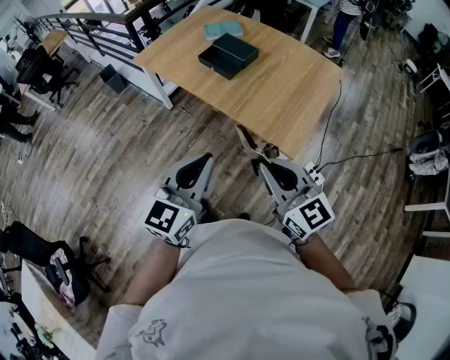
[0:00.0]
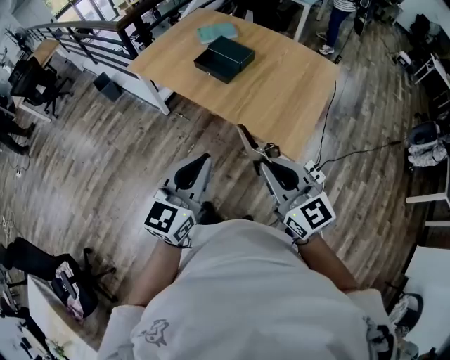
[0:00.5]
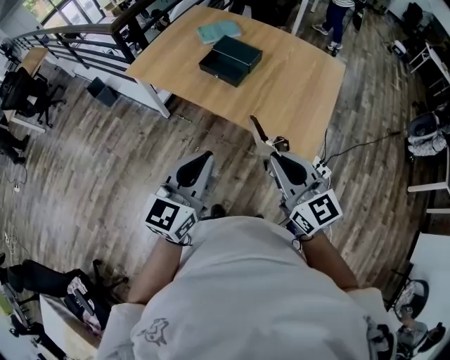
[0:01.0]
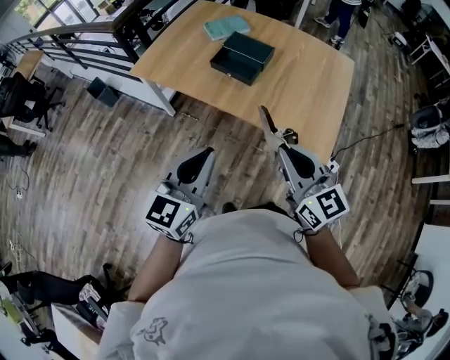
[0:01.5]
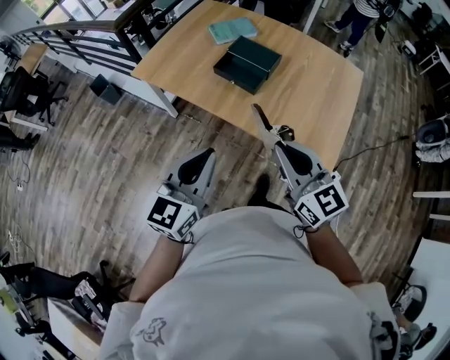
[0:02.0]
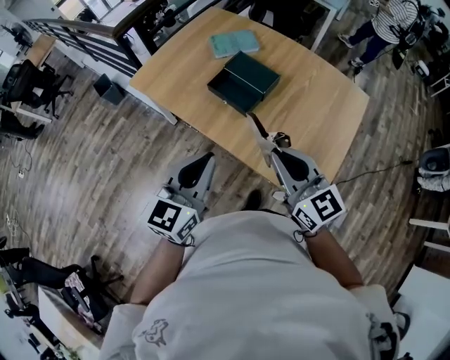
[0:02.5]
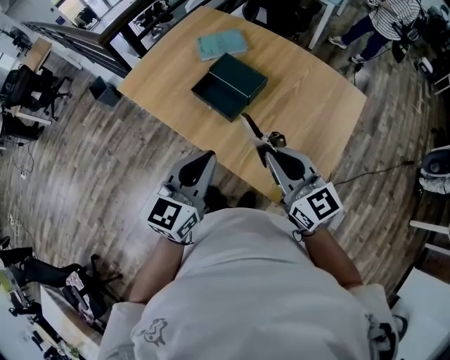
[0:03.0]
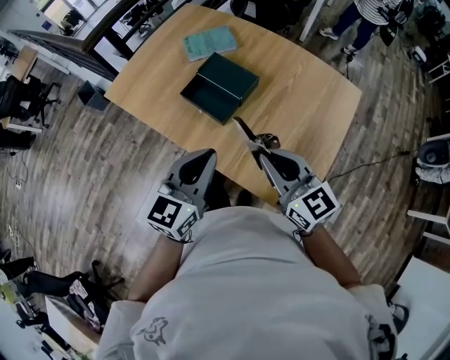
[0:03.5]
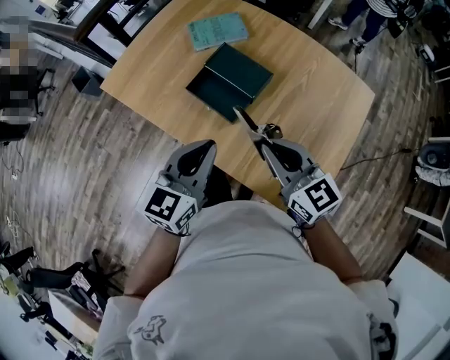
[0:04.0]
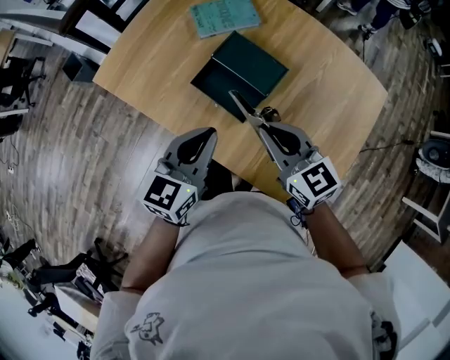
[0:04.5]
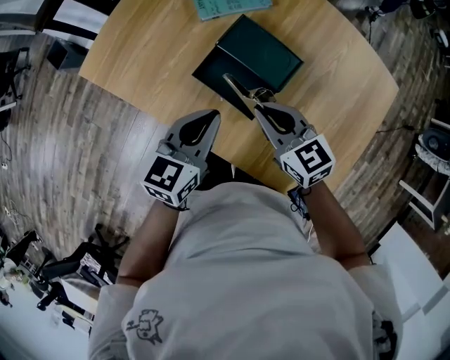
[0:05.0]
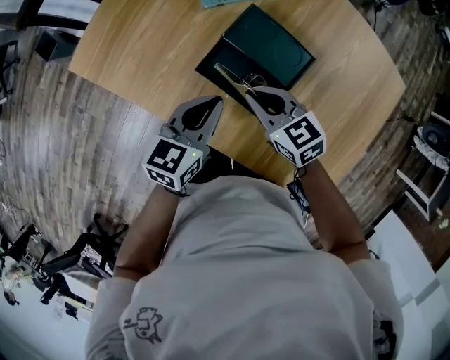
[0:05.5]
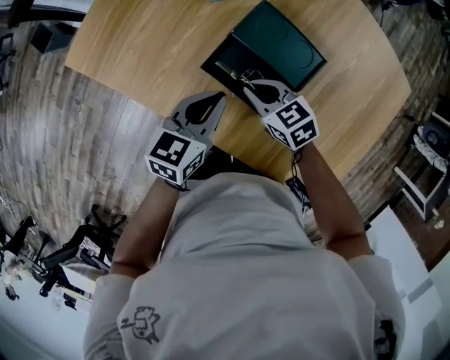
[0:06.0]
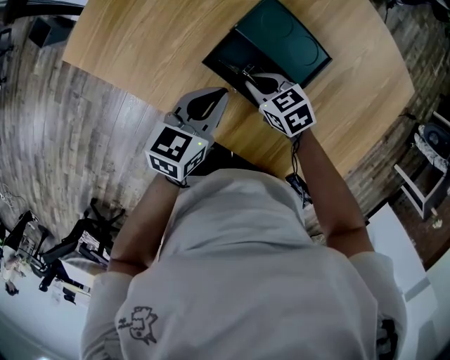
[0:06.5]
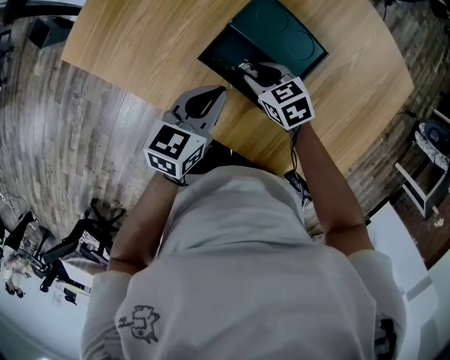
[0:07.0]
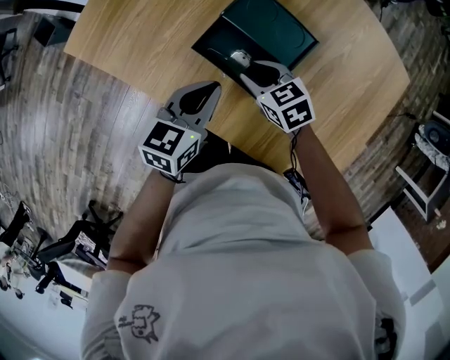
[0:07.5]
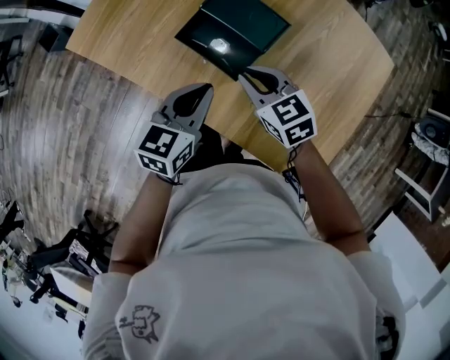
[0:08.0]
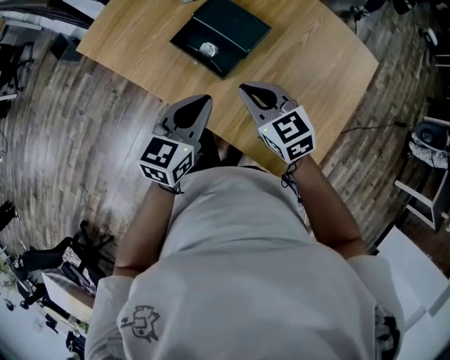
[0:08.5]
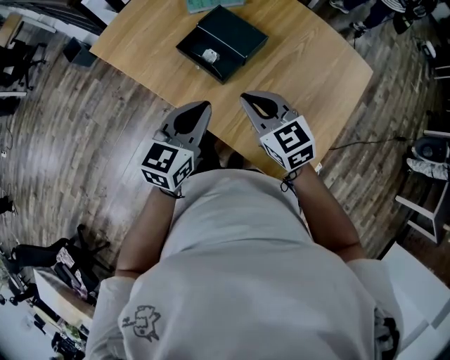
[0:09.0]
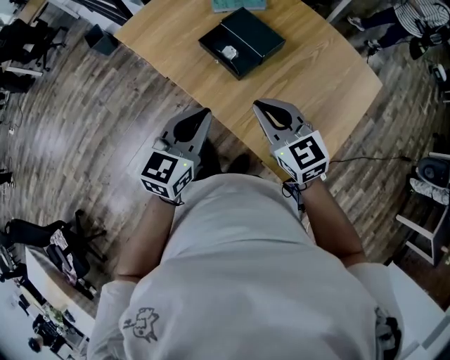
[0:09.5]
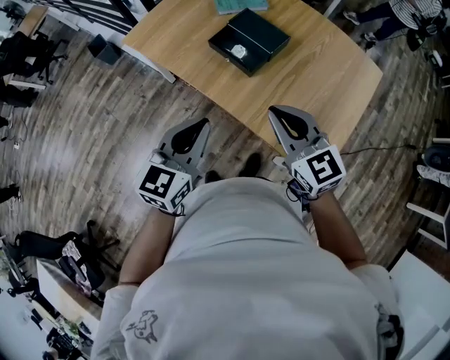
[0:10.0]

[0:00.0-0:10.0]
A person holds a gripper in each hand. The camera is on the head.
0:00.0 to 0:02.0: Both grippers travel together forward and to the left, about 25 cm.
0:02.0 to 0:04.0: Both grippers move forward and to the right, some 25 cm.
0:04.0 to 0:06.0: The right gripper shifts about 35 cm downward, forward and to the left, and tilts its fingers some 30 degrees downward; the left gripper travels downward and forward by approximately 25 cm, and changes its angle by some 20 degrees.
0:06.0 to 0:08.0: The right gripper is displaced upward, backward and to the right by about 15 cm, and opens, then closes once more, while the left gripper is displaced backward and upward by approximately 10 cm.
0:08.0 to 0:10.0: Both grippers move backward and upward, roughly 25 cm. The right gripper changes its angle by some 30 degrees.

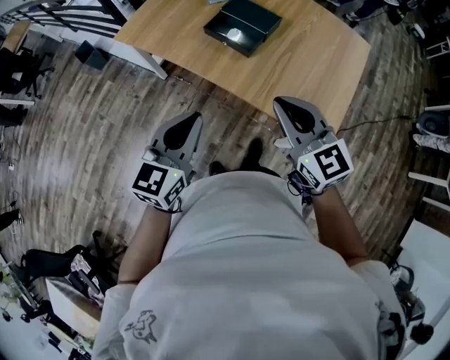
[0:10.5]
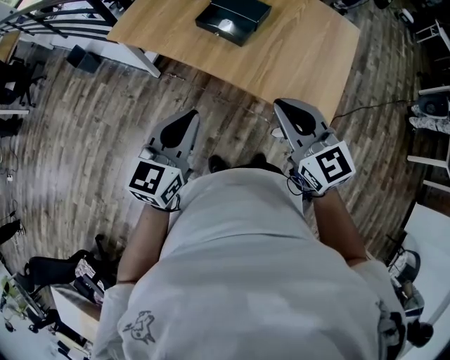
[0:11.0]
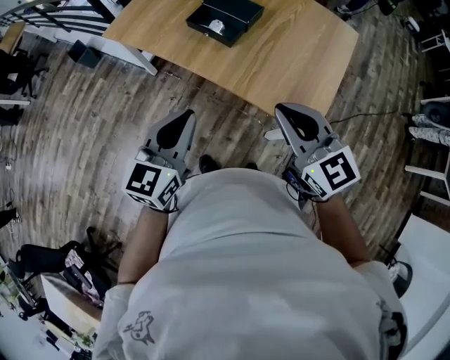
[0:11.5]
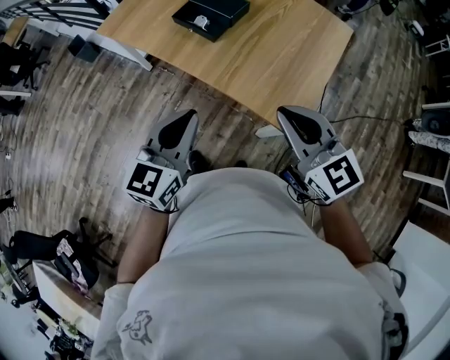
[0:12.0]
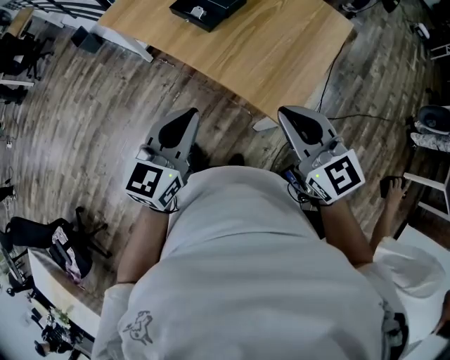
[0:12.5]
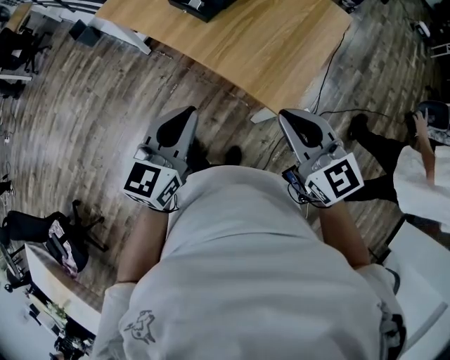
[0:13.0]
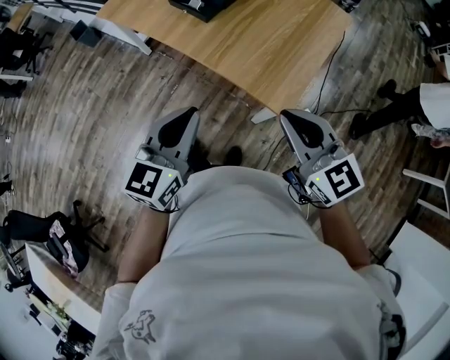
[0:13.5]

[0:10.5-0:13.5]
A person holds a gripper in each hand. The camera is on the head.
0:10.5 to 0:12.0: The two grippers go about 15 cm to the right and backward.
0:12.0 to 0:13.5: The grippers both shift backward by some 10 cm.

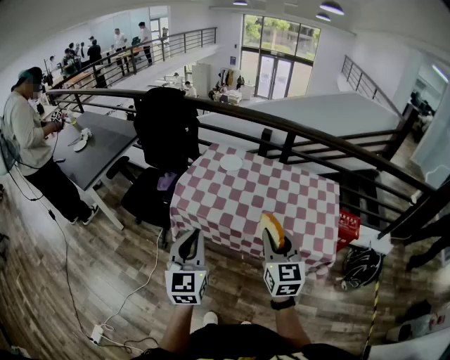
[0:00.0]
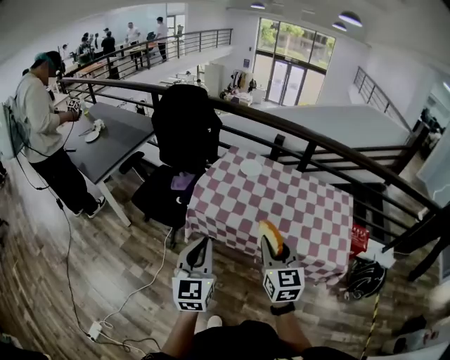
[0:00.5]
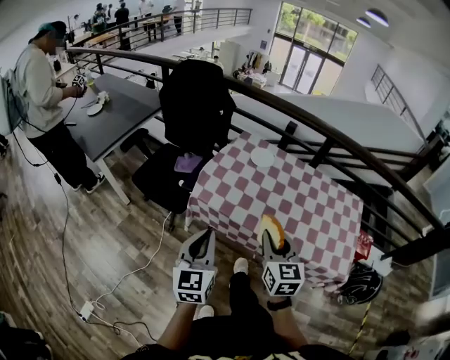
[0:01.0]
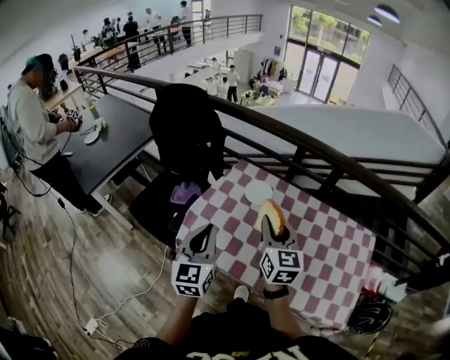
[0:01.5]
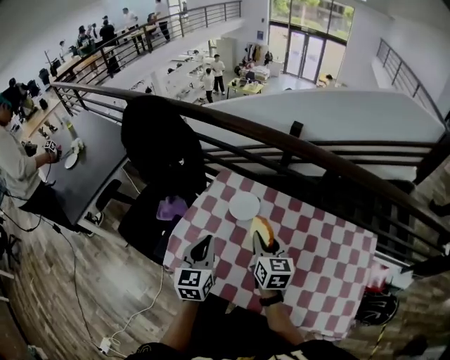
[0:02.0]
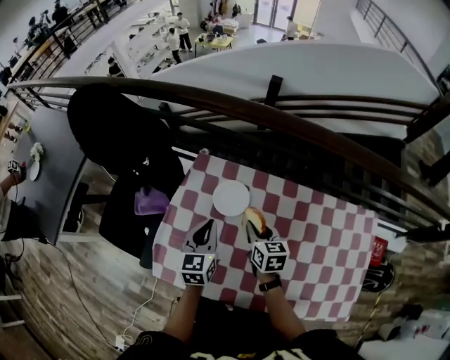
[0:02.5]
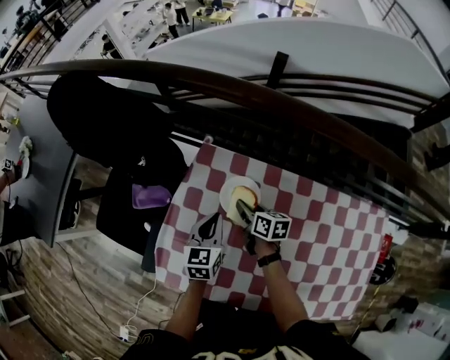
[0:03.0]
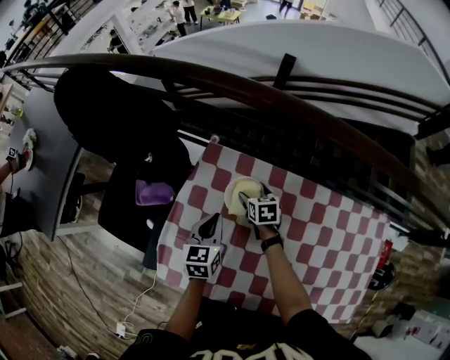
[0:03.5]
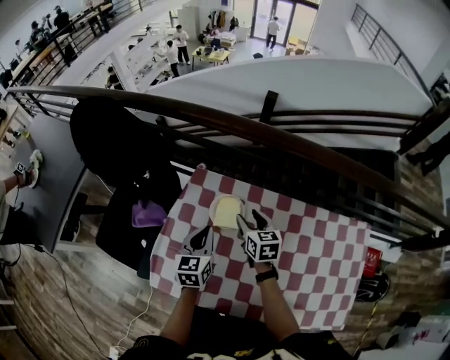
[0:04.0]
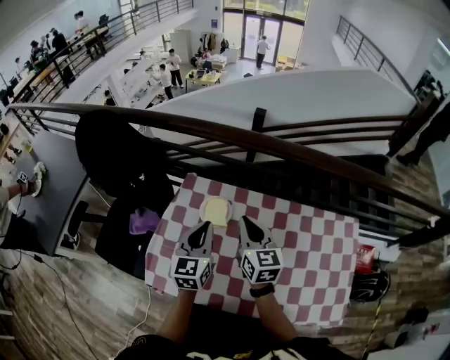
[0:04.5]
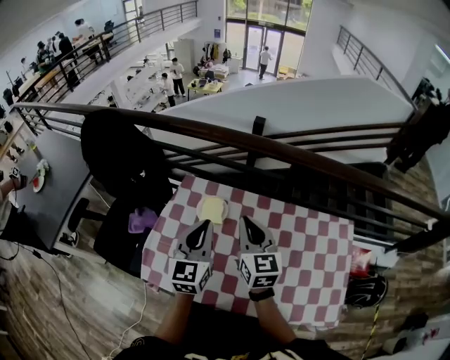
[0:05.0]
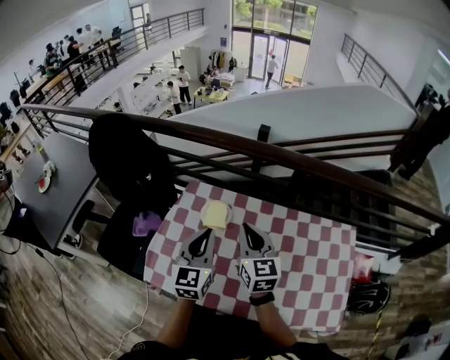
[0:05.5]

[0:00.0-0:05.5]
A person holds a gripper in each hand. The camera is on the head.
0:00.0 to 0:02.0: Both grippers move forward, approximately 40 cm. The right gripper swivels about 20 degrees.
0:02.0 to 0:03.5: Both grippers move downward and forward, approximately 30 cm. The left gripper rotates approximately 20 degrees, while the right gripper points its fingers some 30 degrees further downward, and opens its fingers.
0:03.5 to 0:05.5: The left gripper travels upward, backward and to the right by some 25 cm, and rotates some 30 degrees. Meanwhile the right gripper moves upward and backward, about 40 cm, angles its fingers upward, by roughly 40 degrees, and closes.

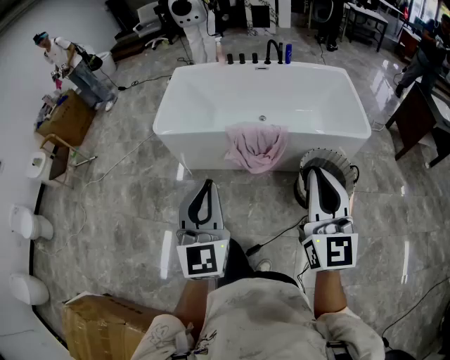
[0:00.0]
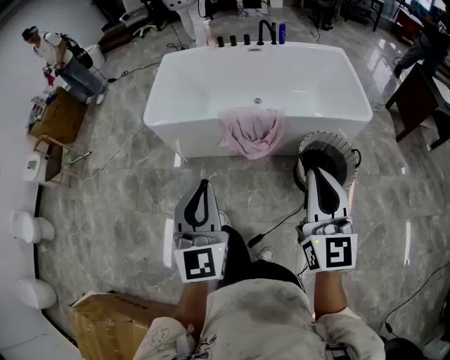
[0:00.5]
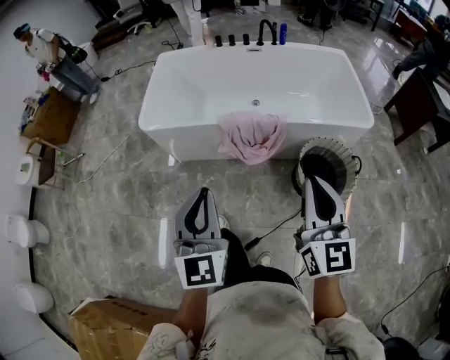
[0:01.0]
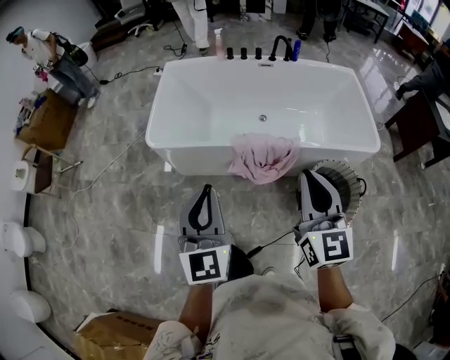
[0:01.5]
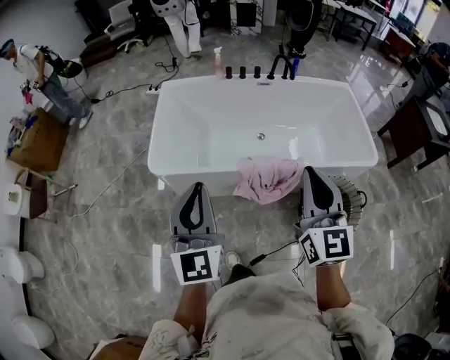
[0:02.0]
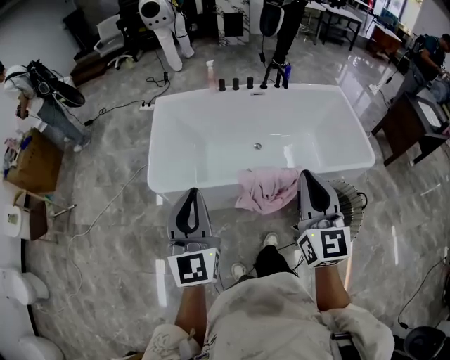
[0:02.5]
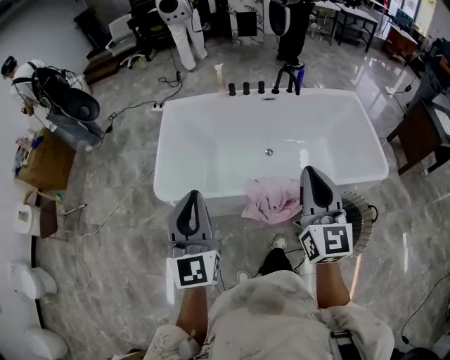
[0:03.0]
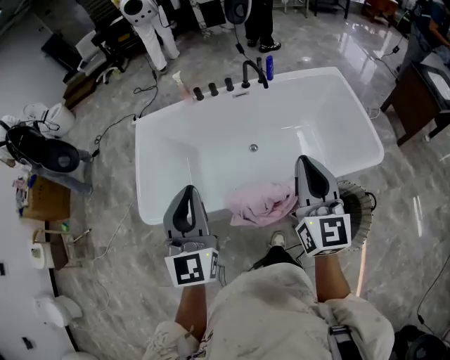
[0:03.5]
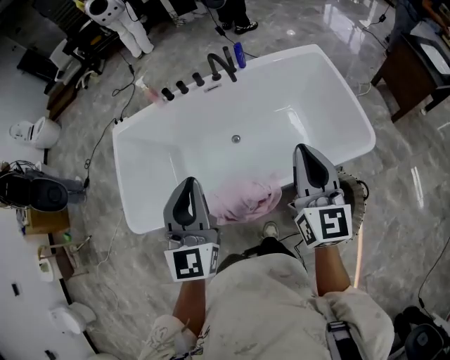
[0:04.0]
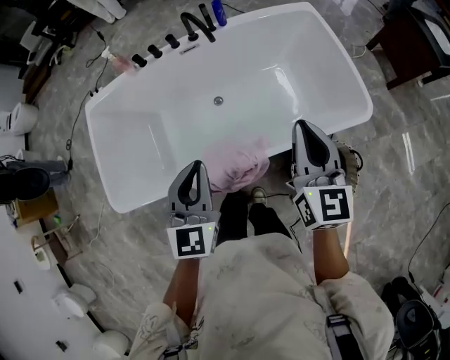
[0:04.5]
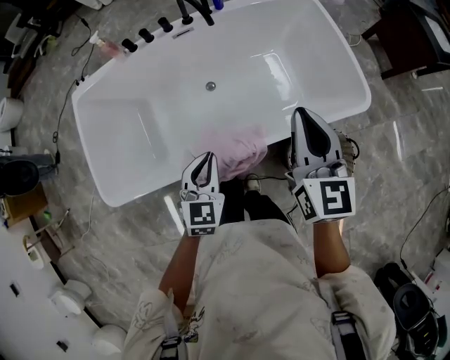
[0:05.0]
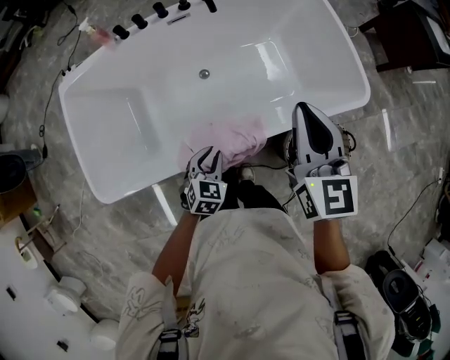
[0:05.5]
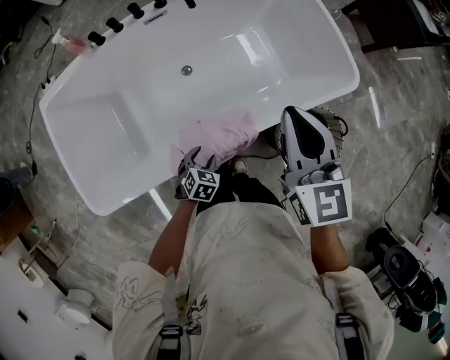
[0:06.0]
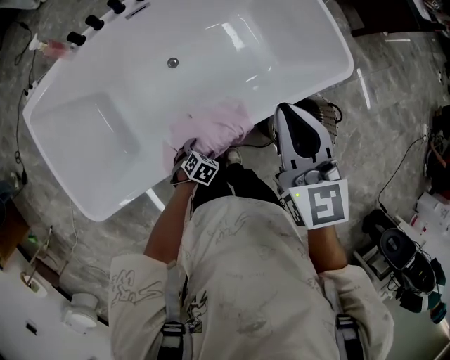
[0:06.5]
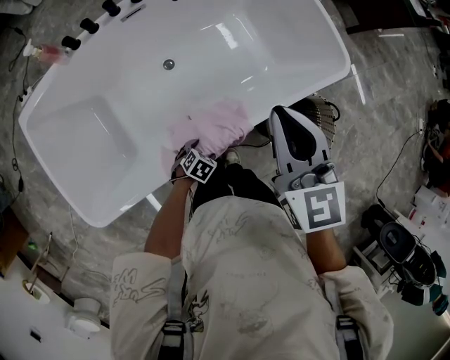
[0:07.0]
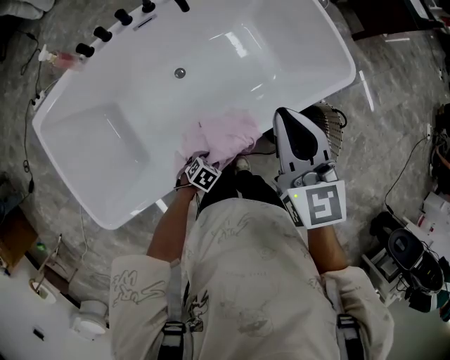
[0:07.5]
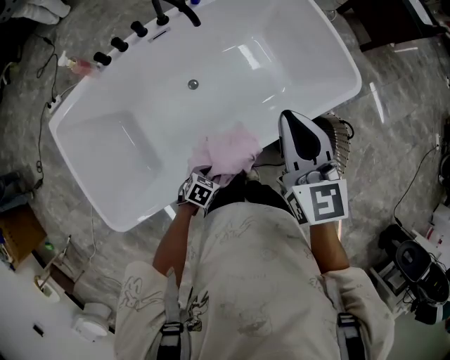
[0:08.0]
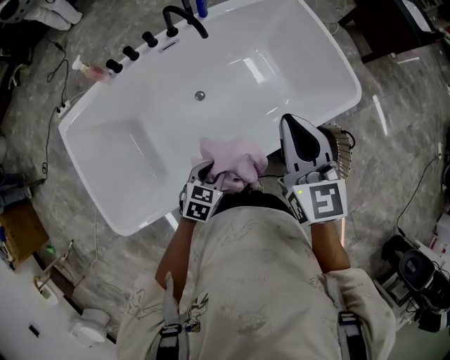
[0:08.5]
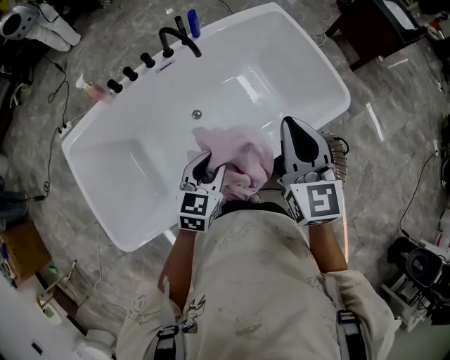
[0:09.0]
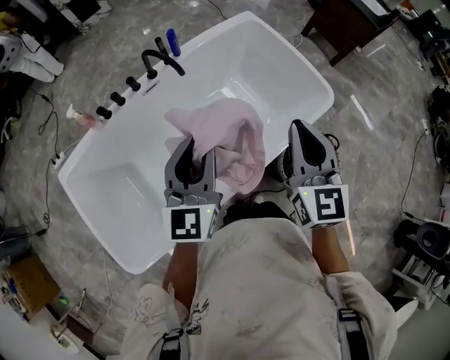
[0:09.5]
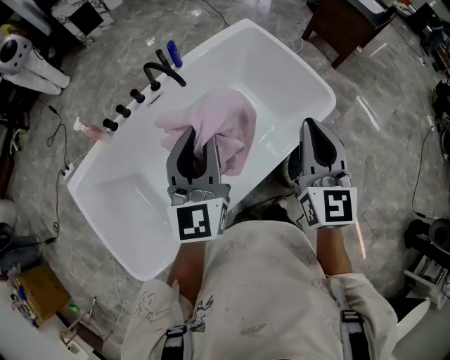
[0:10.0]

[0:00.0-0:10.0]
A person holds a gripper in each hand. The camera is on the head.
0:00.0 to 0:02.0: The grippers both shift forward and to the left by some 35 cm.
0:02.0 to 0:04.0: The pair of grippers is taken forward and to the right, about 40 cm.
0:04.0 to 0:06.0: The right gripper travels downward, forward and to the left by some 15 cm. Meanwhile the left gripper goes about 50 cm downward, tilts its fingers some 60 degrees downward, and opens up.
0:06.0 to 0:08.0: The left gripper reaches about 10 cm downward, then returns, rotates about 20 degrees, and opens, then closes again.
0:08.0 to 0:10.0: The left gripper goes some 50 cm upward and forward, and tips its fingers upward by some 70 degrees, while the right gripper shifts roughly 15 cm upward and to the right, and rotates about 20 degrees.
